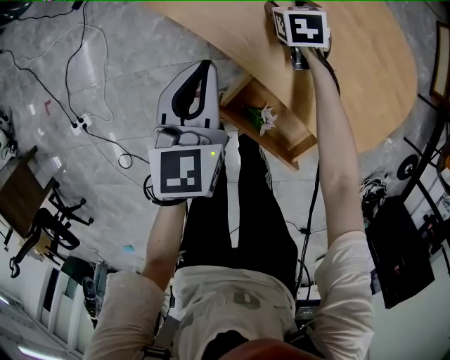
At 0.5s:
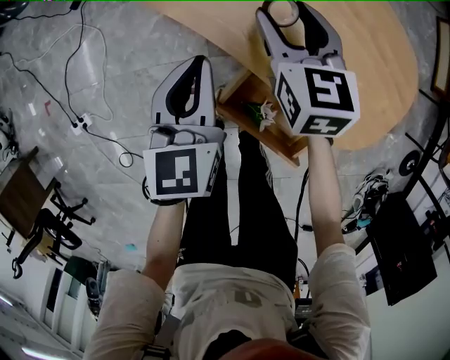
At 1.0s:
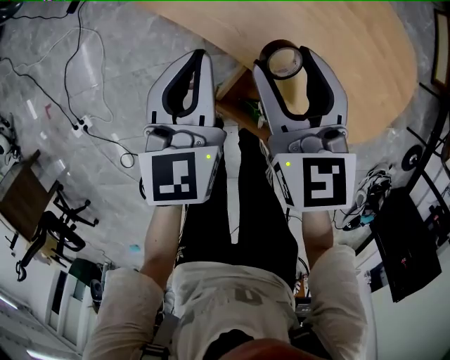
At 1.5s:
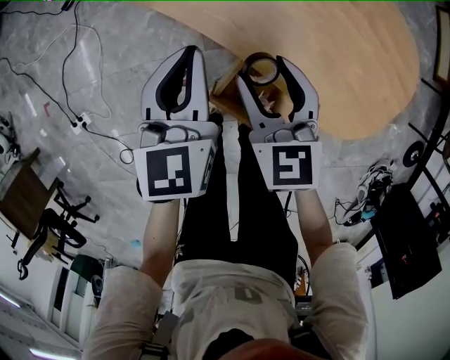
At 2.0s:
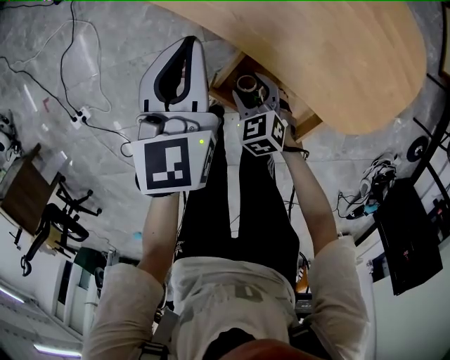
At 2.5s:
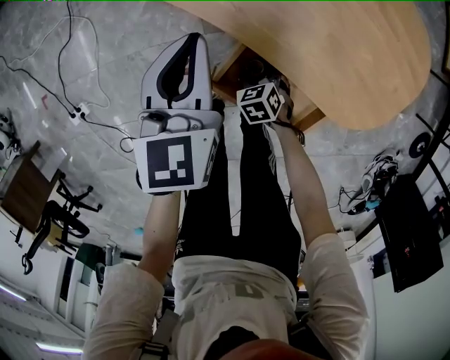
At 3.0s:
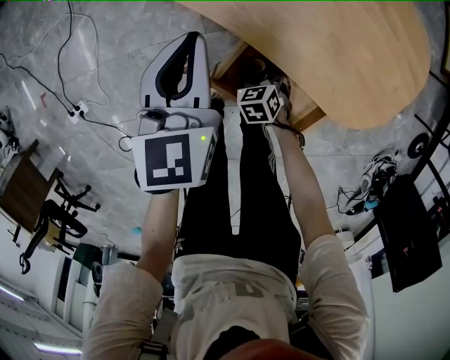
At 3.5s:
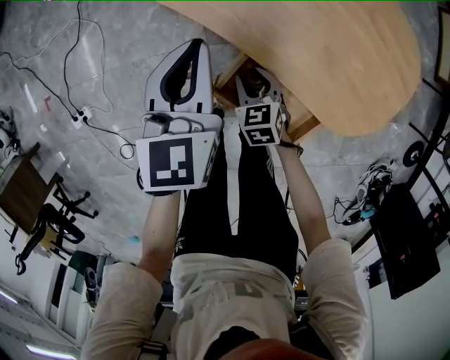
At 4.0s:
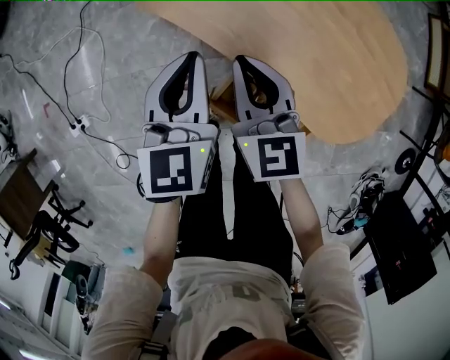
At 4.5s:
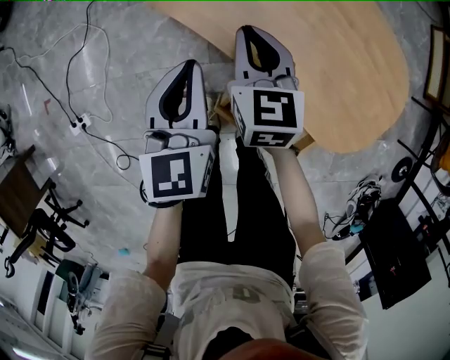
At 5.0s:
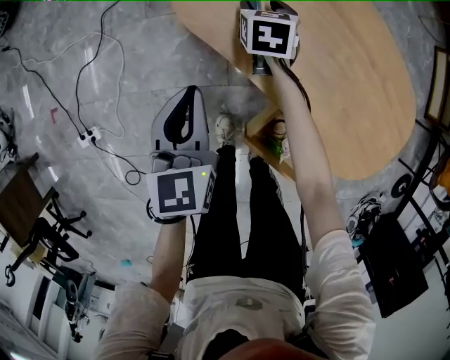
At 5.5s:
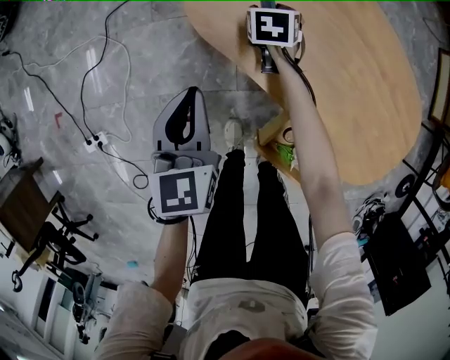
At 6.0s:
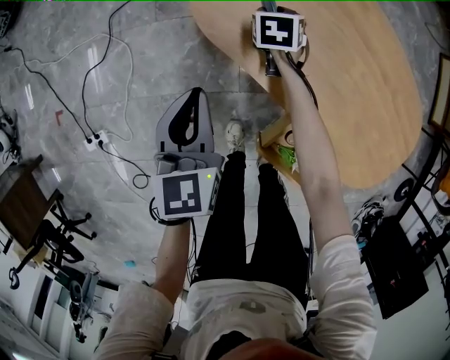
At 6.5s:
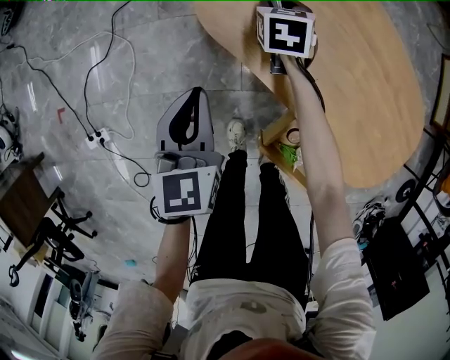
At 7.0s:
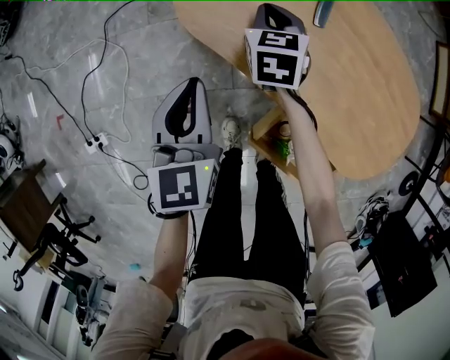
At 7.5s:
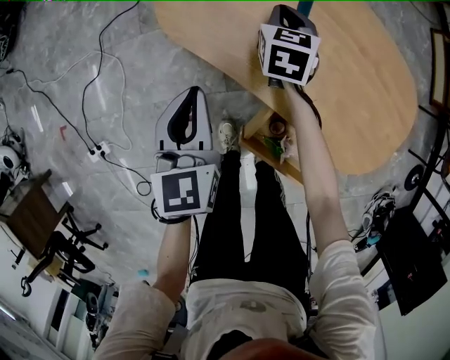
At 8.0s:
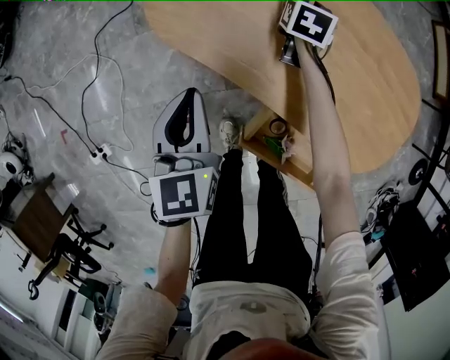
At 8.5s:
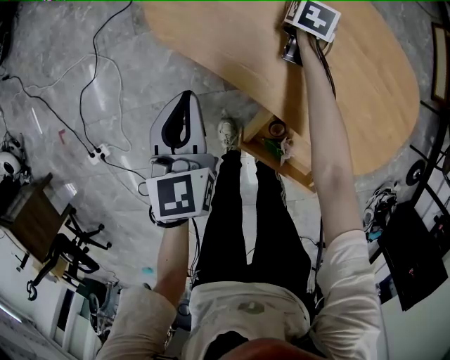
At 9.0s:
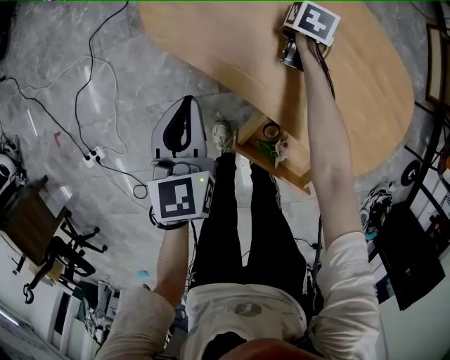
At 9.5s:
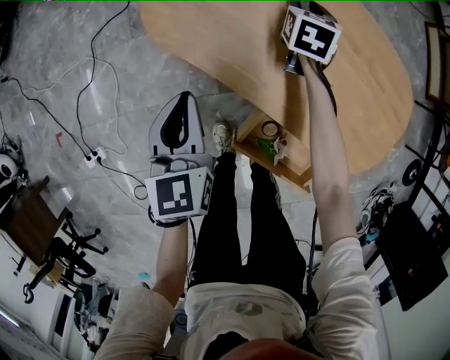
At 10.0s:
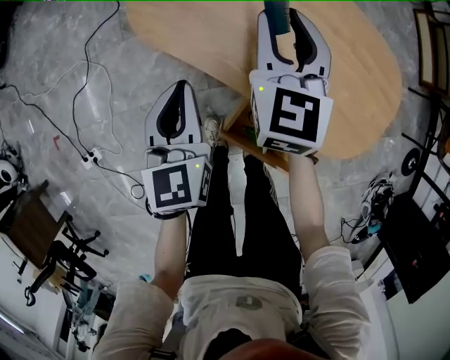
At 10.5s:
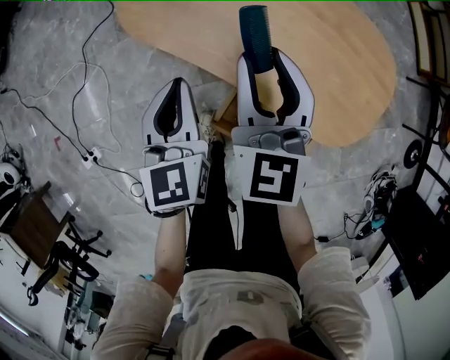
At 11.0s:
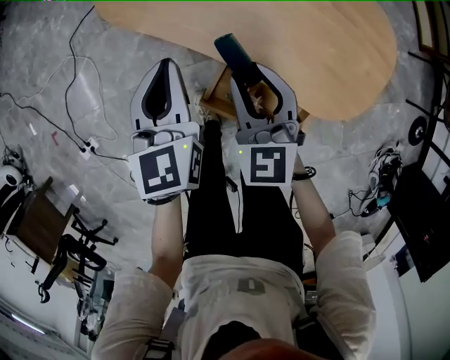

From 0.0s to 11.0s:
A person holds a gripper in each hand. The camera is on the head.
From 0.0s to 2.0s: The right gripper shifts approximately 30 cm backward, and rotates approximately 20 degrees.
From 2.0s to 3.5s: The right gripper moves roughly 10 cm downward and comes back.
From 3.5s to 5.5s: The right gripper goes roughly 35 cm forward, and closes, then opens again. Meanwhile the left gripper travels to the left and forward by roughly 20 cm.
From 5.5s to 7.5s: The right gripper goes some 15 cm to the right and upward, and closes, while the left gripper shifts roughly 5 cm to the right.
From 7.5s to 9.0s: The right gripper heads downward, to the right and forward, covering roughly 15 cm, changes its angle by approximately 30 degrees, and opens.
From 9.0s to 11.0s: The left gripper heads to the right and upward, covering roughly 10 cm; the right gripper travels backward and upward by about 35 cm, and rotates approximately 50 degrees.

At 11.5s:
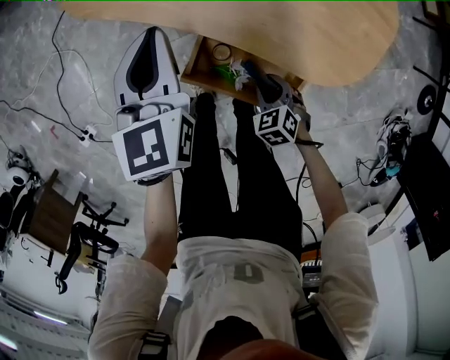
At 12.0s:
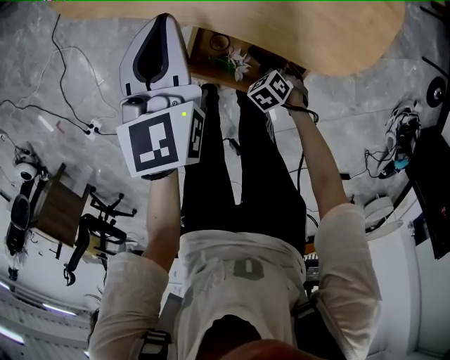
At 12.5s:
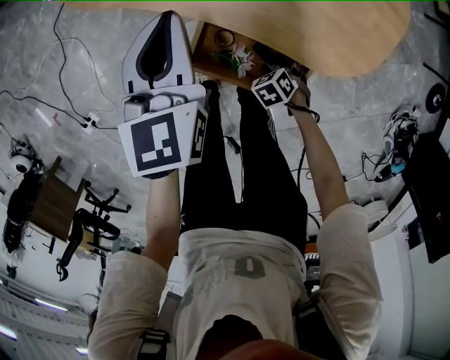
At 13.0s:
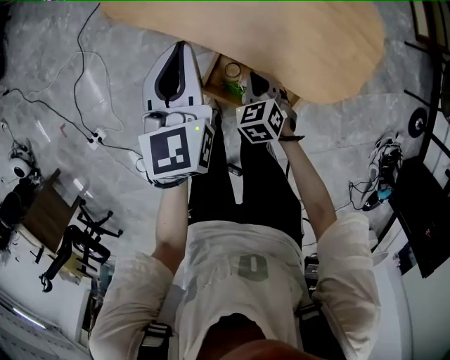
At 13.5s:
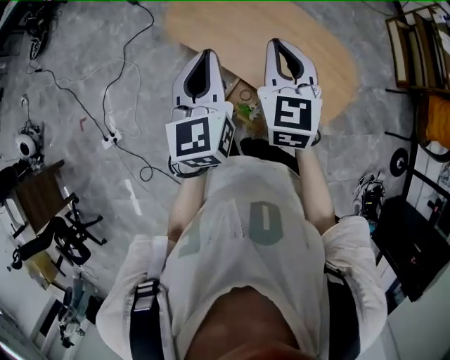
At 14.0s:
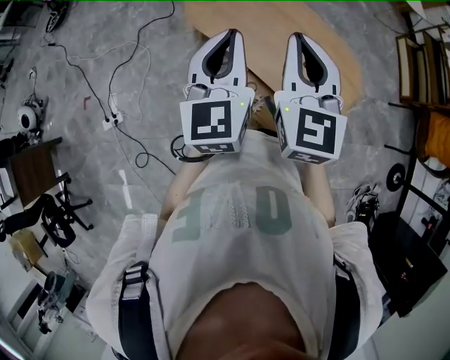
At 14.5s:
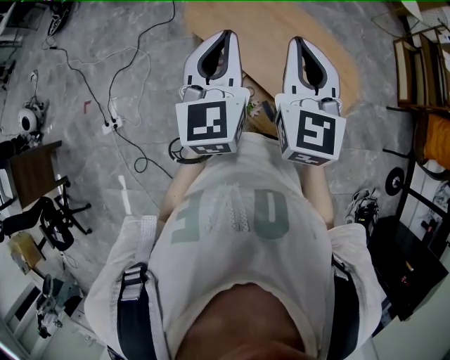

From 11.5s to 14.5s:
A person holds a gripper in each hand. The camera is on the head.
From 11.5s to 13.0s: The right gripper changes place by approximately 15 cm, and closes its fingers; the left gripper goes approximately 10 cm upward.
From 13.0s to 14.5s: The left gripper goes approximately 25 cm upward, while the right gripper shifts roughly 50 cm upward, and tilts its fingers some 50 degrees upward.

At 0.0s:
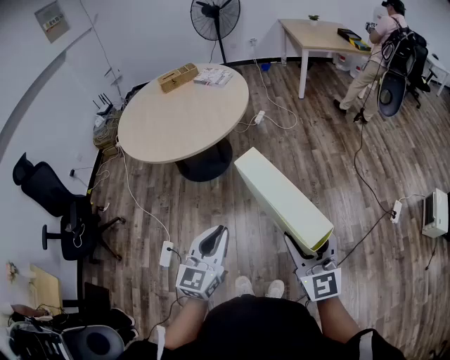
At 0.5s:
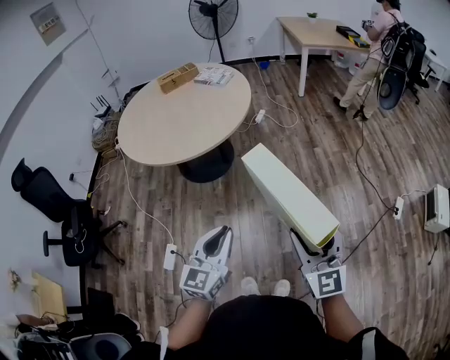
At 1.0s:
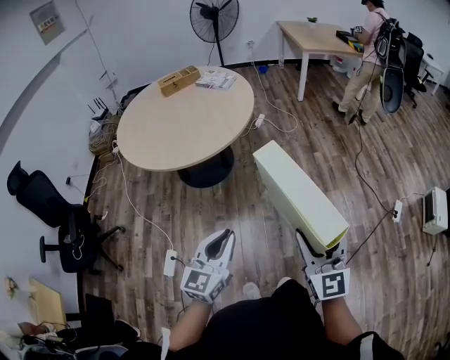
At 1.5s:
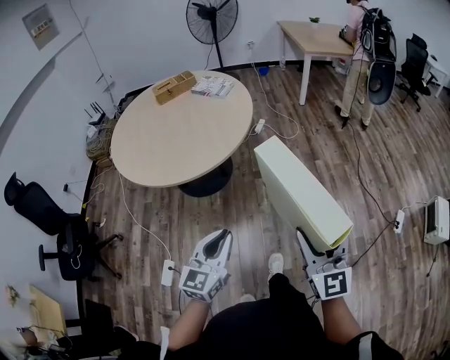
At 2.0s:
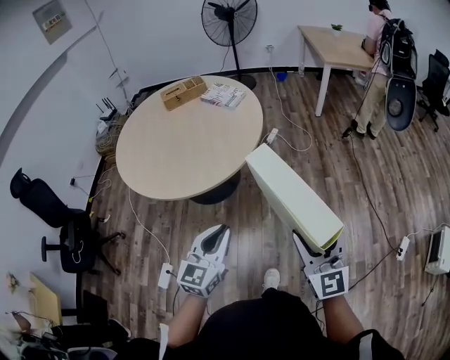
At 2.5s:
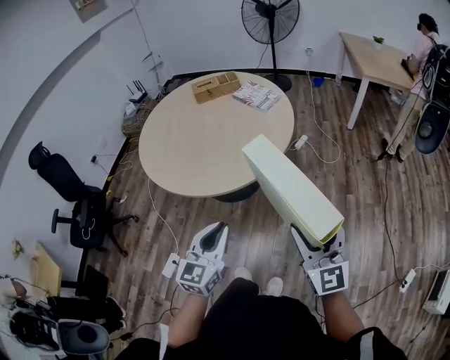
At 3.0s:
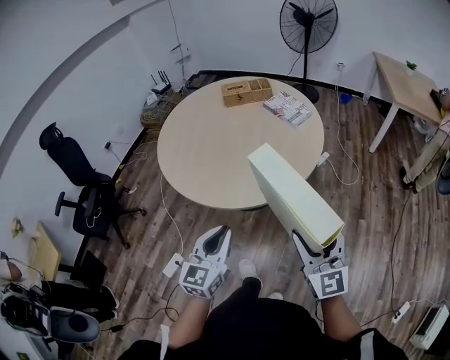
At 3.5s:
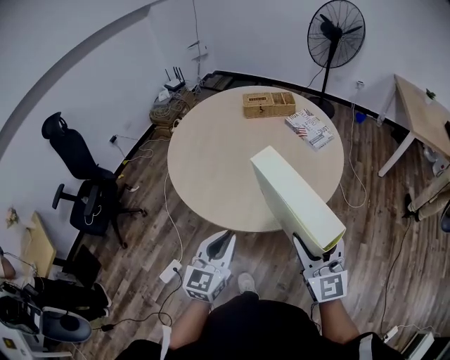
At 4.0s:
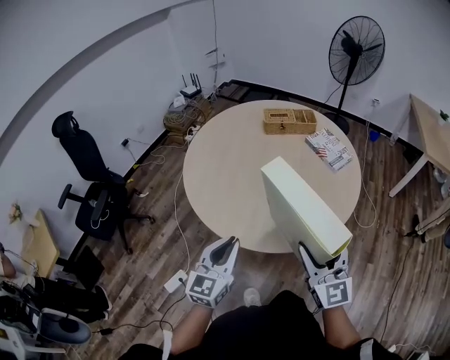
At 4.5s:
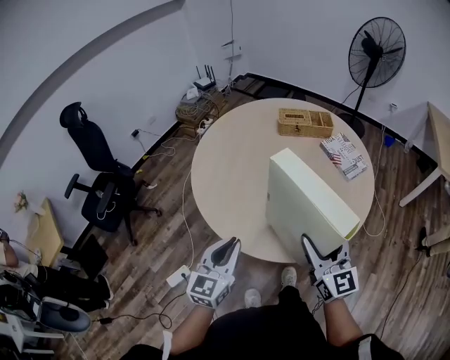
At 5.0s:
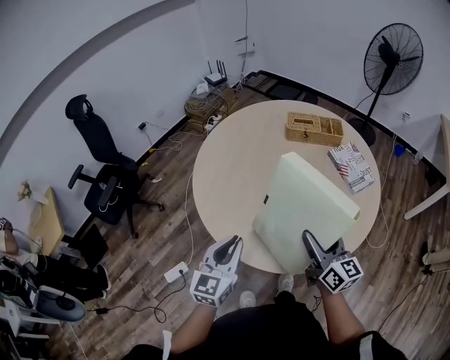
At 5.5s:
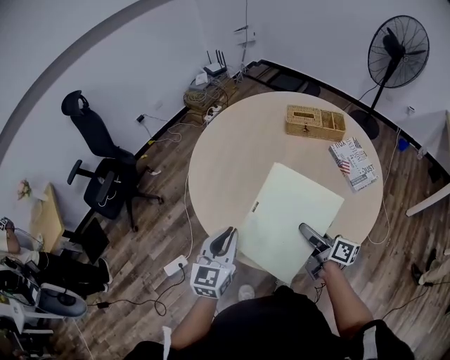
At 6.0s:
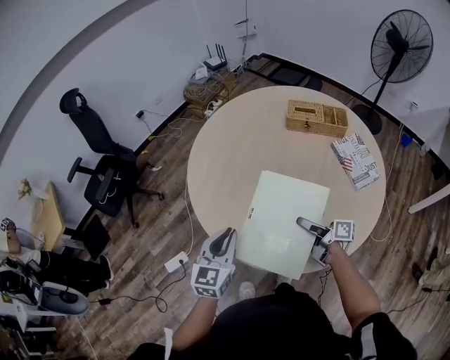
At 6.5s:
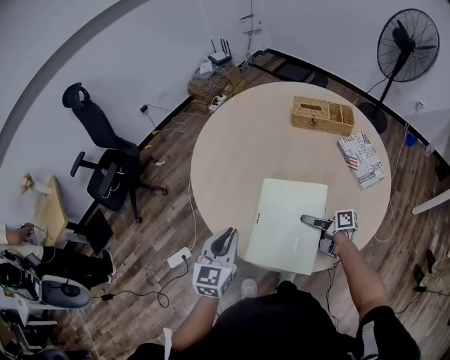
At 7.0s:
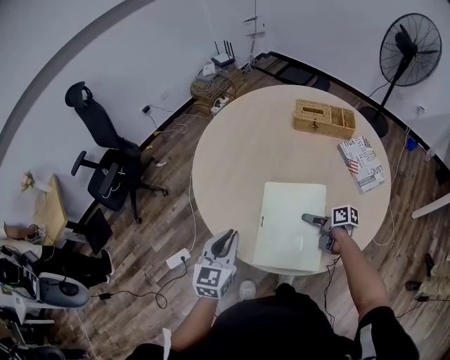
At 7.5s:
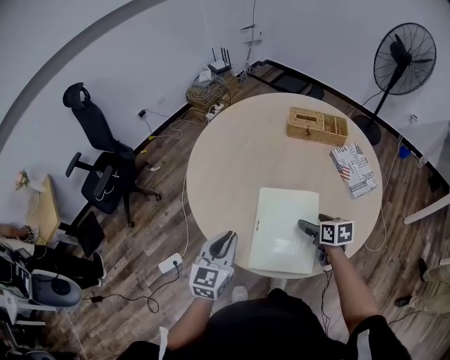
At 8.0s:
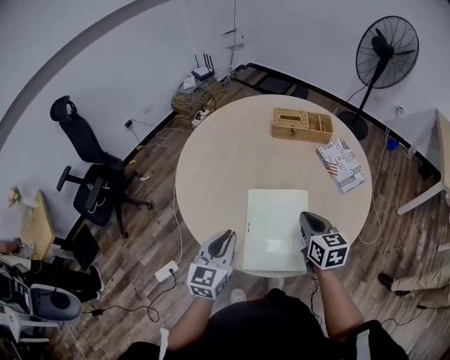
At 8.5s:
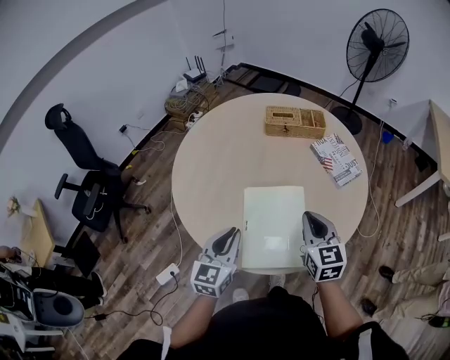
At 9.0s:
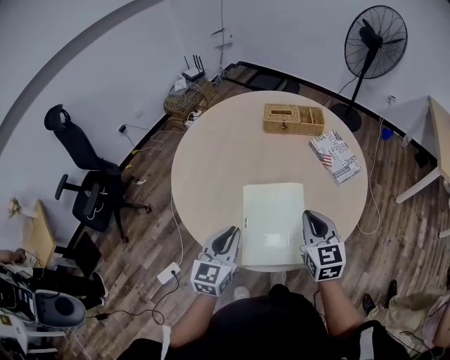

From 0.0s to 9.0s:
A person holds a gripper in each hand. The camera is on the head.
From 0.0s to 2.0s: The two grippers go roughly 25 cm forward.
From 2.0s to 4.5s: The right gripper moves about 50 cm, and rotates approximately 40 degrees. Meanwhile the left gripper shifts by roughly 35 cm, and turns by about 30 degrees.
From 4.5s to 7.0s: The left gripper moves some 10 cm. Meanwhile the right gripper heads downward, covering about 30 cm, and tips its fingers downward by approximately 40 degrees.
From 7.0s to 9.0s: The right gripper goes roughly 25 cm upward, turns by roughly 70 degrees, and closes its fingers. The left gripper ends up approximately 5 cm from where it was.

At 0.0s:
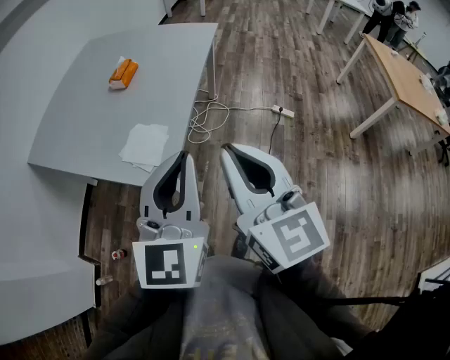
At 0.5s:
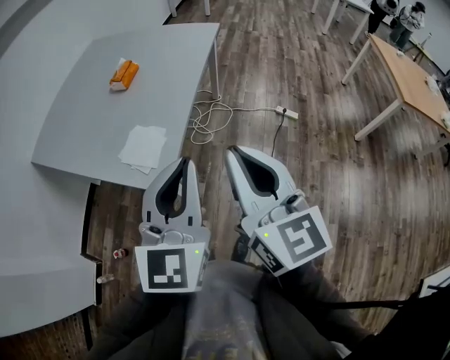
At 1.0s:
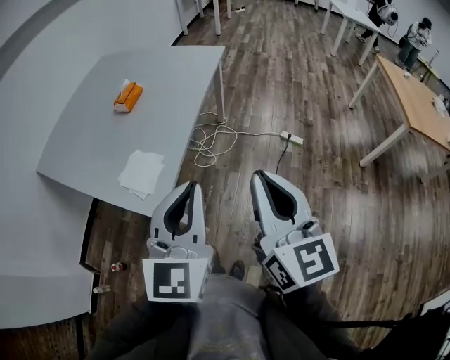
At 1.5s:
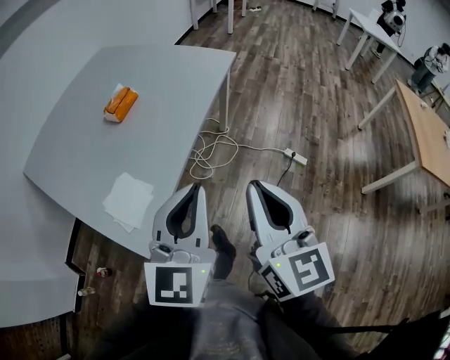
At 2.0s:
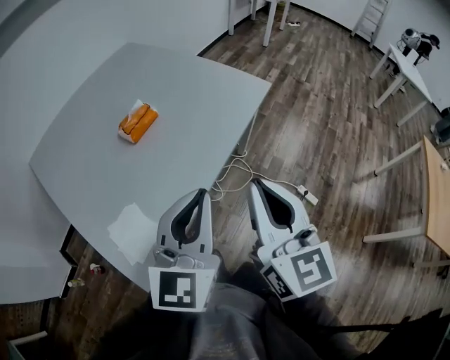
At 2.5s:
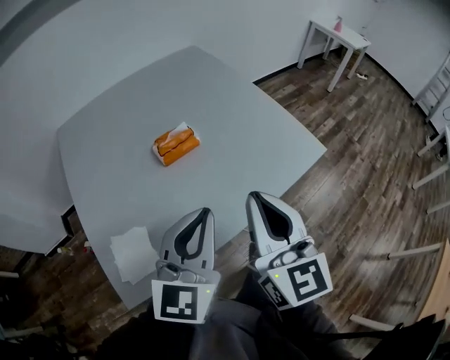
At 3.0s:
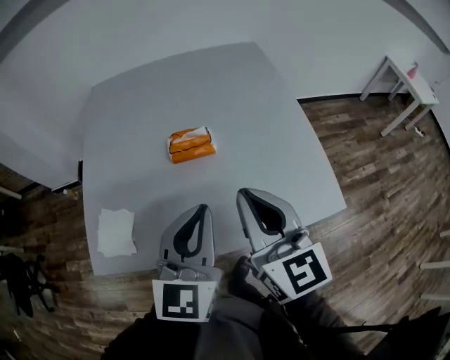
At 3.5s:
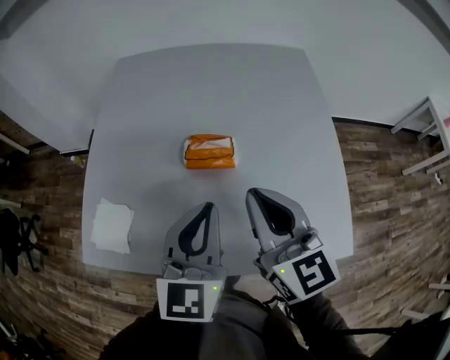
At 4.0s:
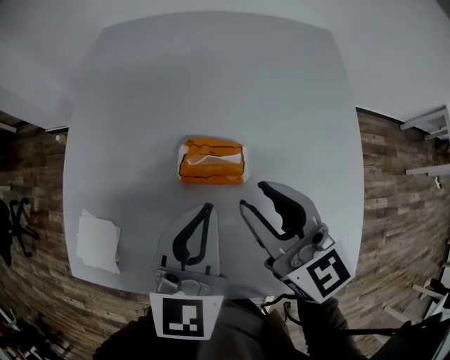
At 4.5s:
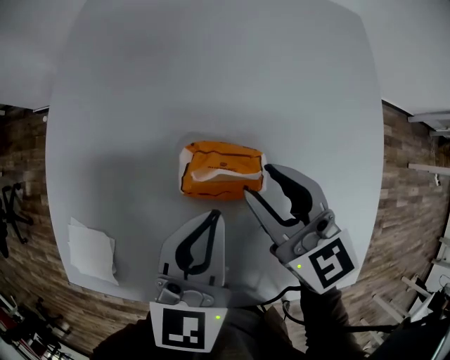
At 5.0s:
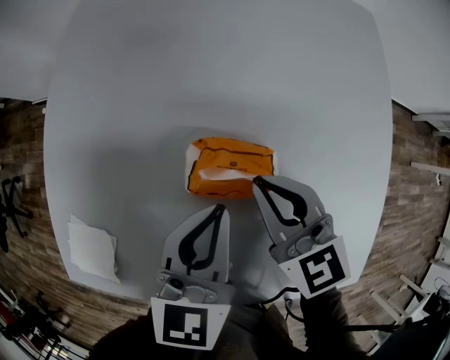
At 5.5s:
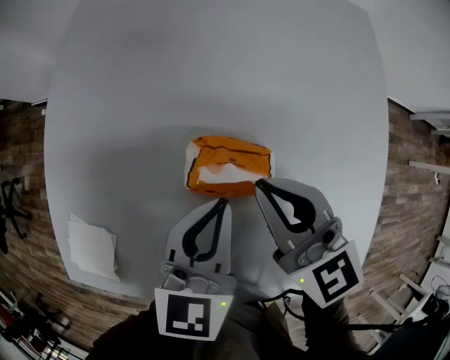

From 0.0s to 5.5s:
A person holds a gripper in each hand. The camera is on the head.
From 0.0s to 2.0s: Both grippers travel together forward, about 35 cm.
From 2.0s to 3.5s: The right gripper moves about 40 cm, and changes its angle by roughly 60 degrees, while the left gripper ends up some 30 cm from where it was, and turns by some 60 degrees.
From 3.5s to 5.5s: The two grippers go about 25 cm forward and downward. The right gripper turns by some 20 degrees, and opens, then closes again.
